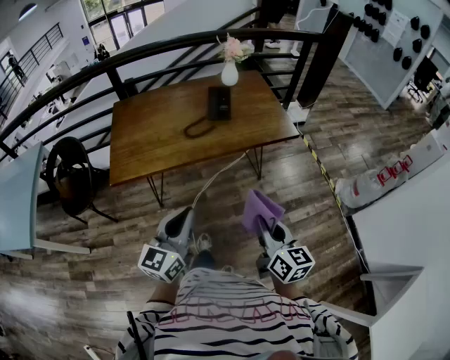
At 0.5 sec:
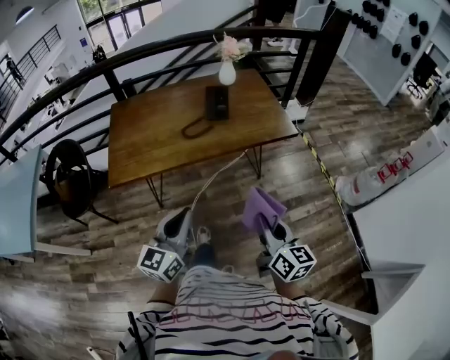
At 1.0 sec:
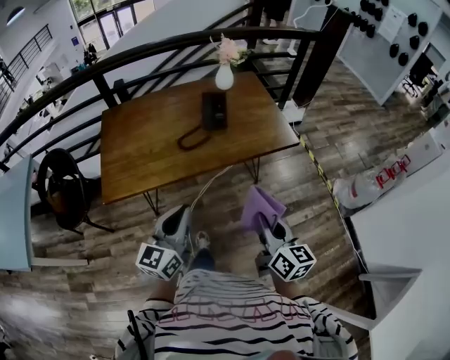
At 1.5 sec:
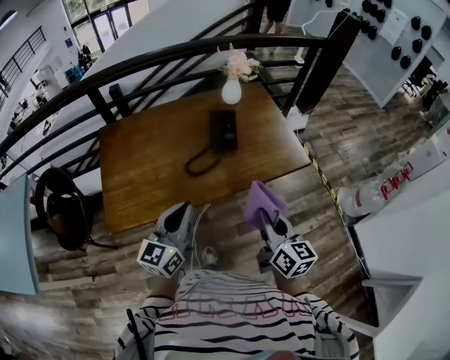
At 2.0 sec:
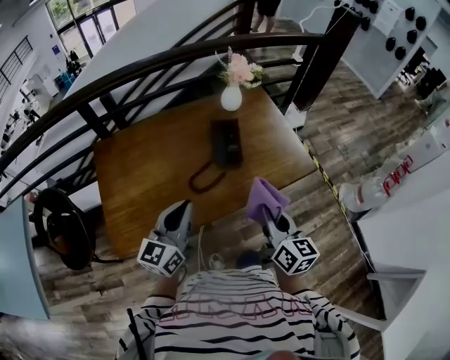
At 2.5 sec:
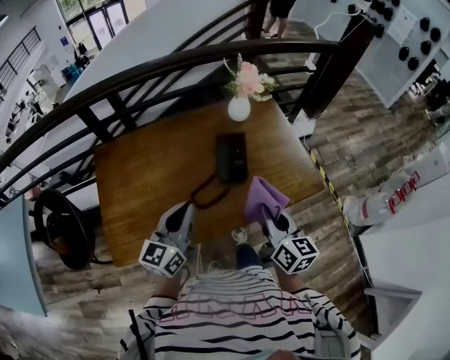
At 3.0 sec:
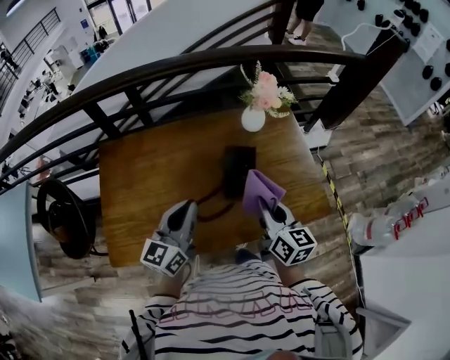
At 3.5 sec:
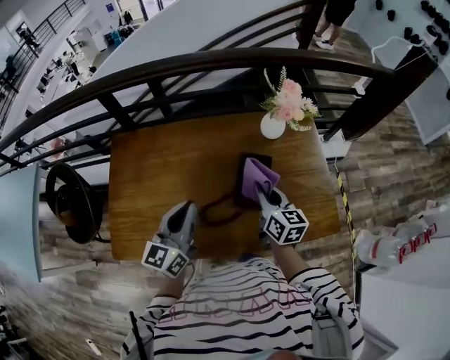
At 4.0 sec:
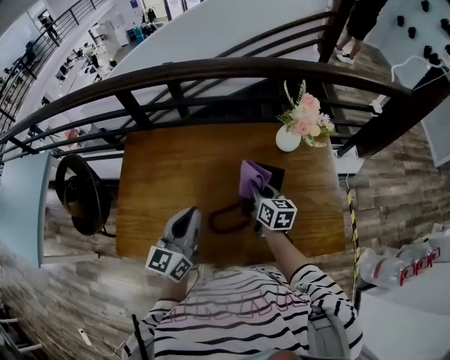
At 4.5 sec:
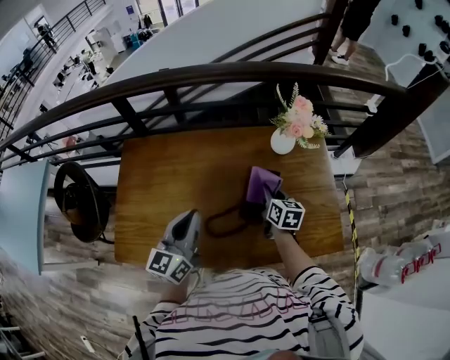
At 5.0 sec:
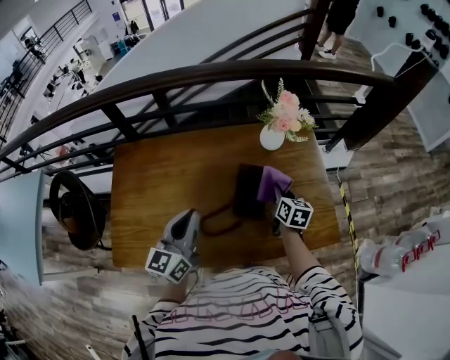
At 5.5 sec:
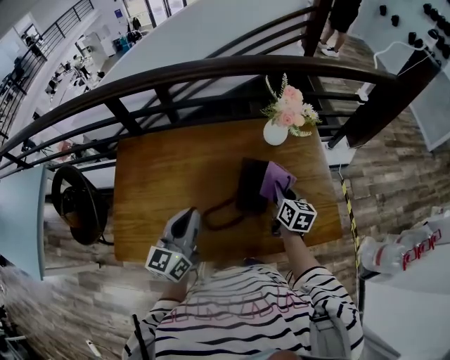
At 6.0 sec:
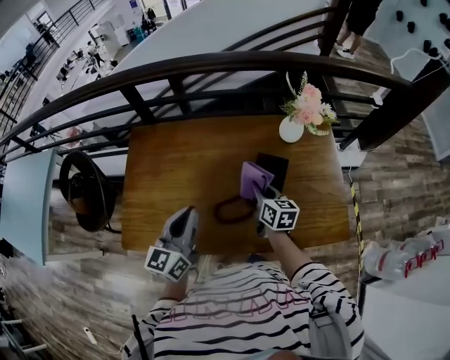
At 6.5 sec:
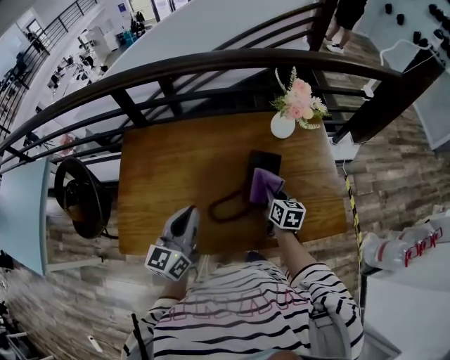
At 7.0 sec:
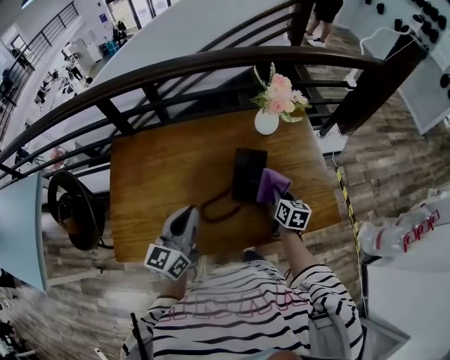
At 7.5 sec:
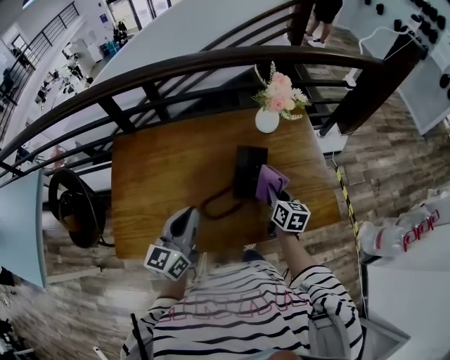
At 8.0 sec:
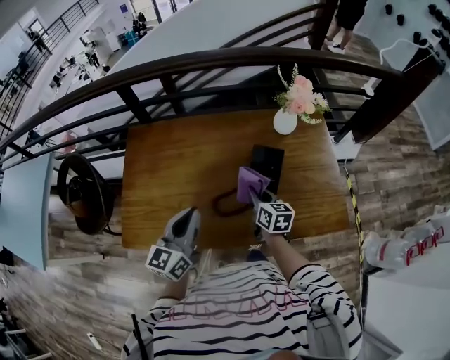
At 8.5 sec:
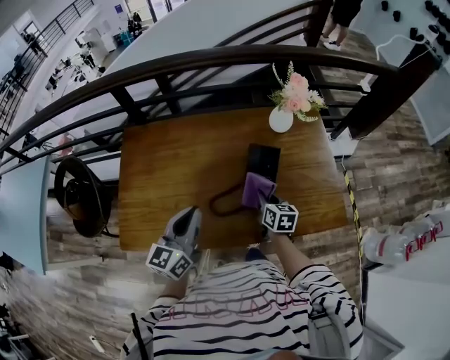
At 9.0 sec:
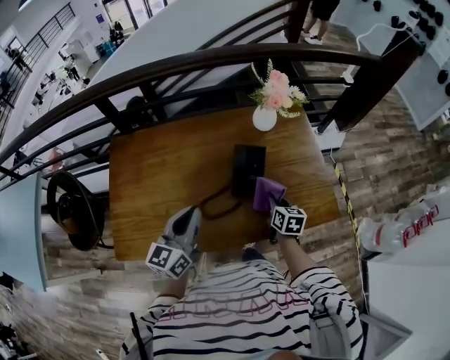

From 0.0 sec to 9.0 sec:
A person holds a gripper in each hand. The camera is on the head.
From 0.0 sec to 2.0 sec: Both grippers travel together forward, approximately 35 cm.
From 2.0 sec to 4.5 sec: The left gripper changes place by about 20 cm, and turns by roughly 20 degrees; the right gripper shifts by approximately 40 cm, and changes its angle by approximately 30 degrees.
From 4.5 sec to 7.0 sec: The right gripper goes left and right, some 15 cm each way, reversing 2 times.
From 7.0 sec to 9.0 sec: The right gripper reaches roughly 15 cm to the left, then returns.

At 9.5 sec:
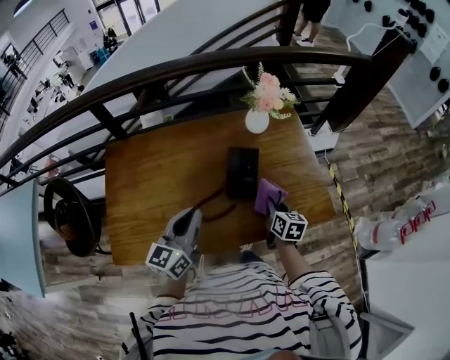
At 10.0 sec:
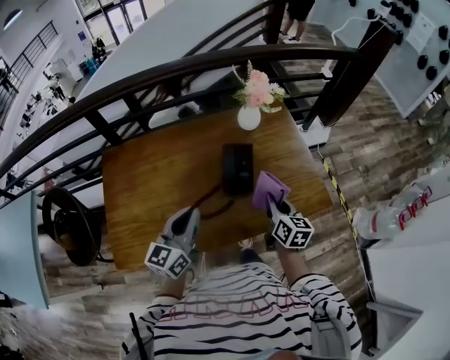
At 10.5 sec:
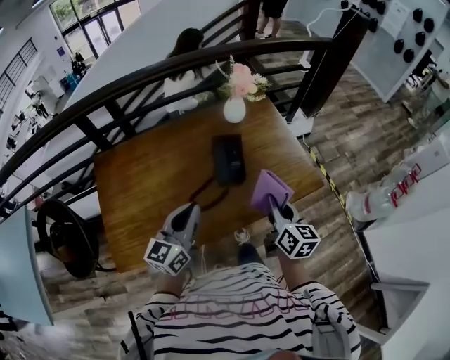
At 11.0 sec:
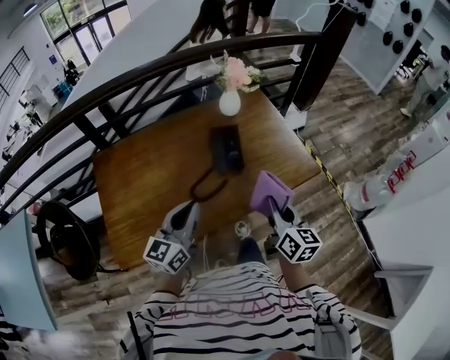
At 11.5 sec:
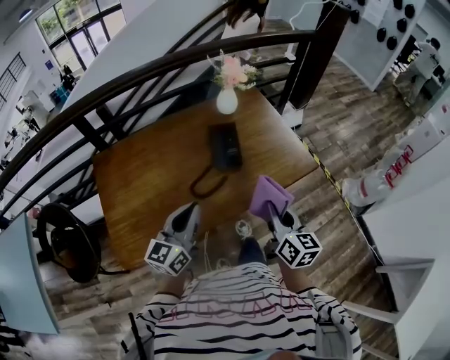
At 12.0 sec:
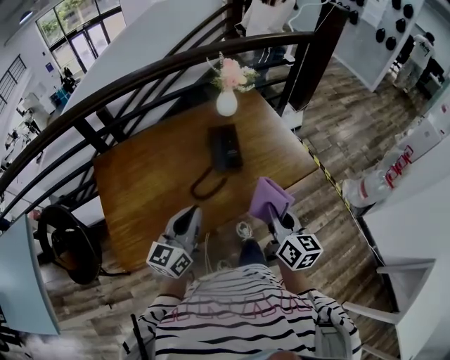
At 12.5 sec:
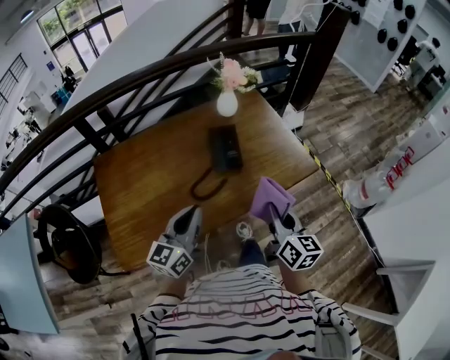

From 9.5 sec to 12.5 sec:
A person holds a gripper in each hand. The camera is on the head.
From 9.5 sec to 11.0 sec: The left gripper shifts some 10 cm backward, while the right gripper is displaced backward and upward by approximately 25 cm, and swivels roughly 20 degrees.
From 11.0 sec to 12.5 sec: The grippers move only a little.

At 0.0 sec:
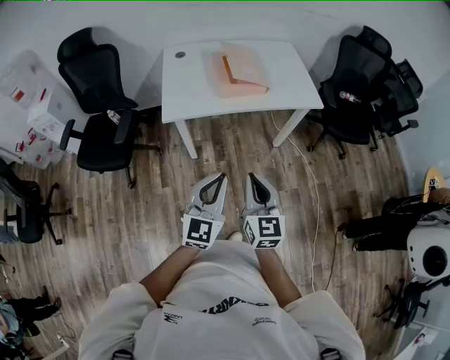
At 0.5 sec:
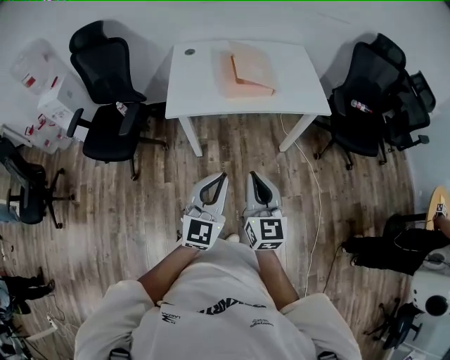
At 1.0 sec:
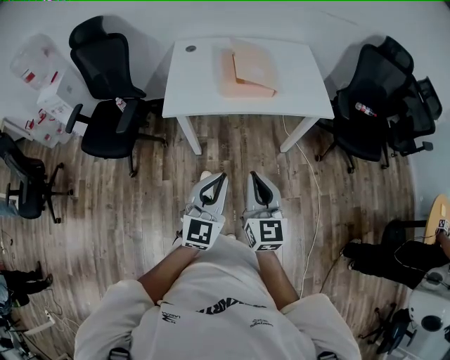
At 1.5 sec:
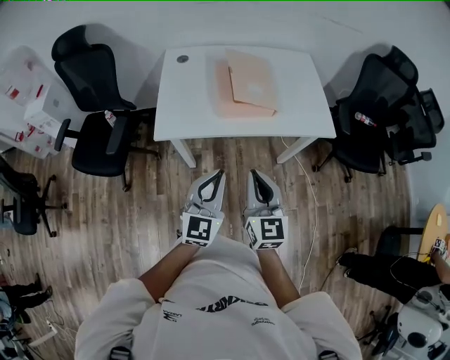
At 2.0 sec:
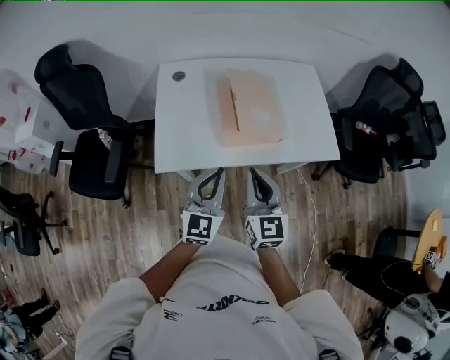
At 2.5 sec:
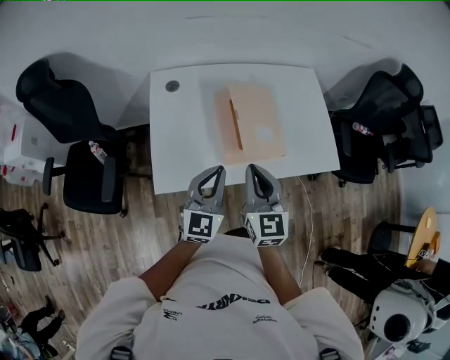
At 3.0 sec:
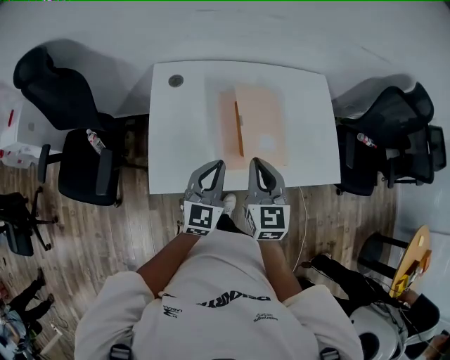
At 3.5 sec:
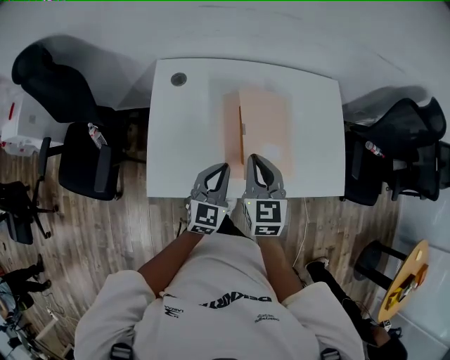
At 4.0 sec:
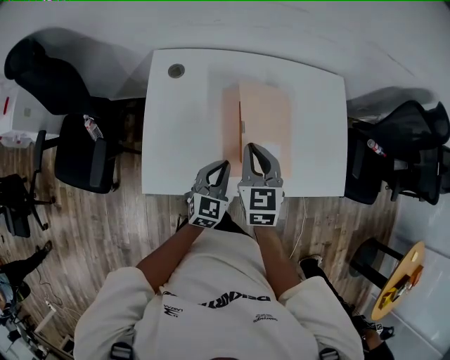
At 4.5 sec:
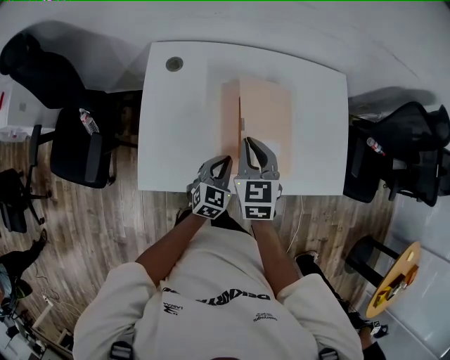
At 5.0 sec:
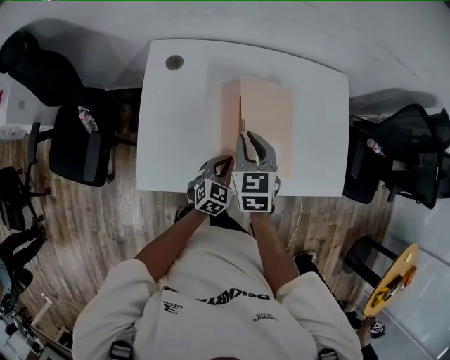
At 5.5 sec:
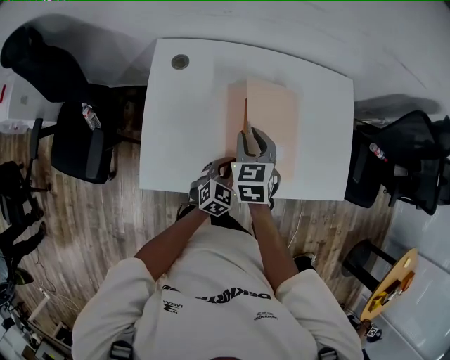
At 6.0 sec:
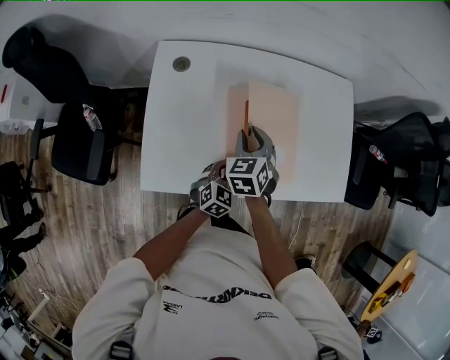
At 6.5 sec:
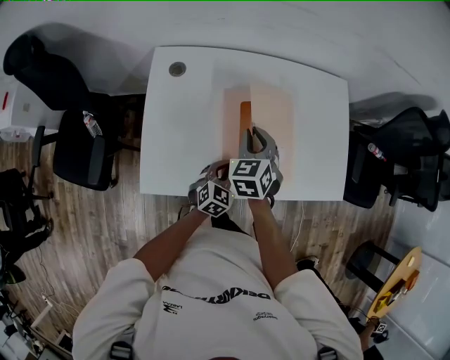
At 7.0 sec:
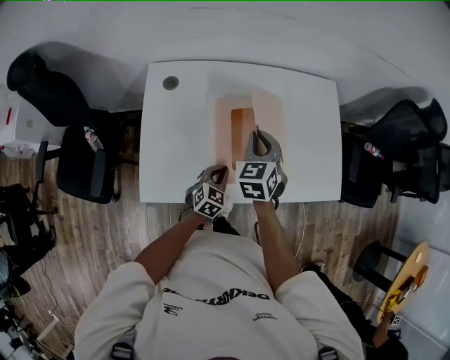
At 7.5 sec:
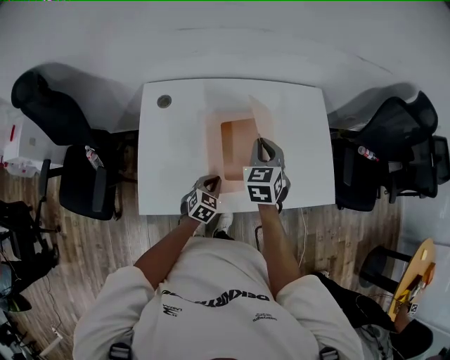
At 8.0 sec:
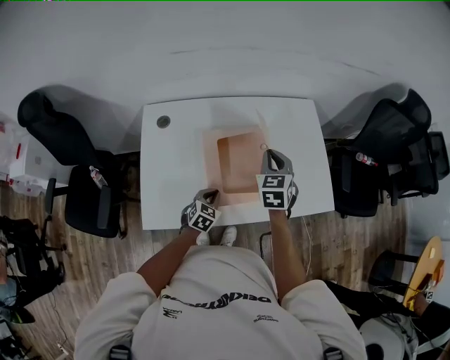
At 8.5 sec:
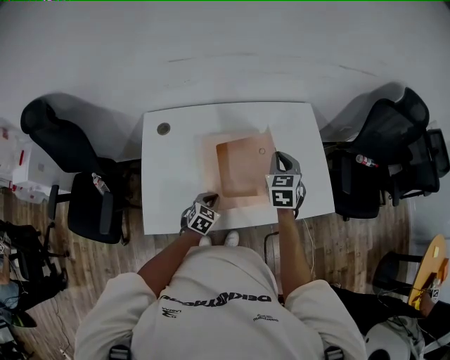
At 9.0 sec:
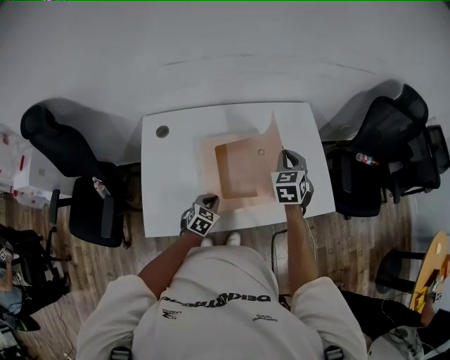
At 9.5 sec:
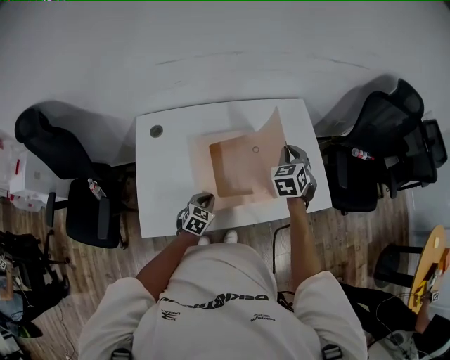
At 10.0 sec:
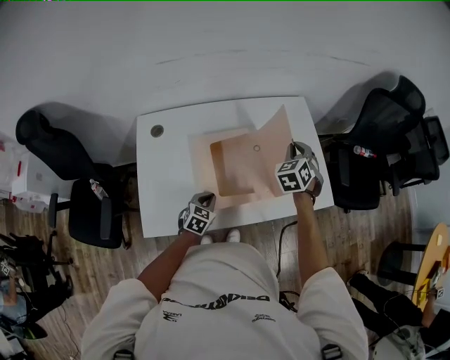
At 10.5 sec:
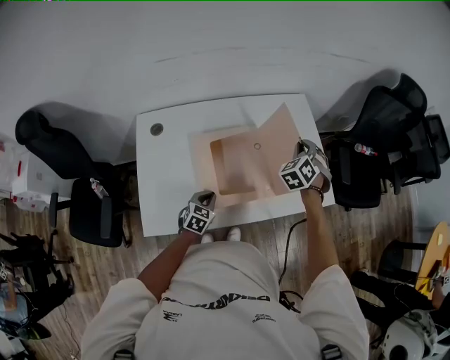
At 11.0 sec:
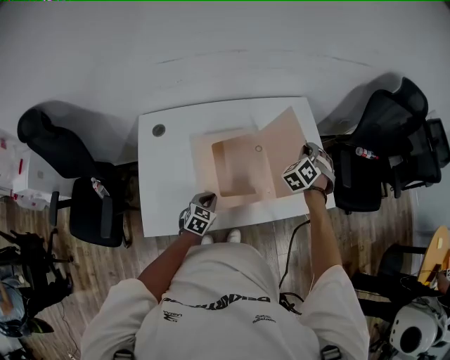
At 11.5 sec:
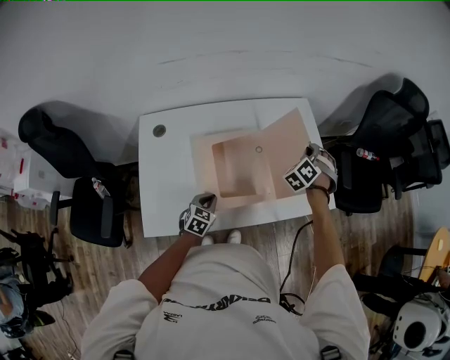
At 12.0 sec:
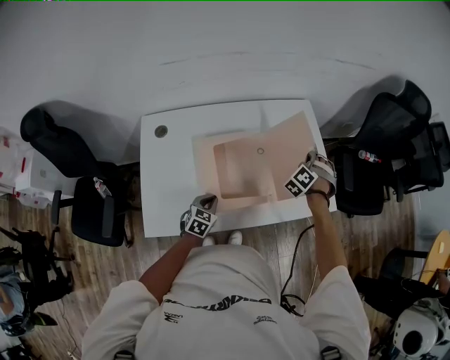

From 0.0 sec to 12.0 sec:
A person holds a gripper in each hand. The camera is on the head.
From 0.0 sec to 2.0 sec: Both grippers travel together forward, roughly 30 cm.
From 2.0 sec to 4.0 sec: The right gripper heads forward, covering about 25 cm, and changes its angle by about 20 degrees. Meanwhile the left gripper goes some 25 cm forward and downward.
From 4.0 sec to 6.0 sec: The right gripper travels downward and forward by about 10 cm, changes its angle by roughly 20 degrees, and opens, while the left gripper goes about 10 cm downward.
From 6.0 sec to 8.0 sec: The right gripper heads to the right and upward, covering some 20 cm, and closes its fingers.
From 8.0 sec to 10.0 sec: The right gripper travels to the right and forward by about 10 cm, and turns by approximately 20 degrees.
From 10.0 sec to 12.0 sec: The right gripper goes about 10 cm downward and to the right, and swivels about 40 degrees.

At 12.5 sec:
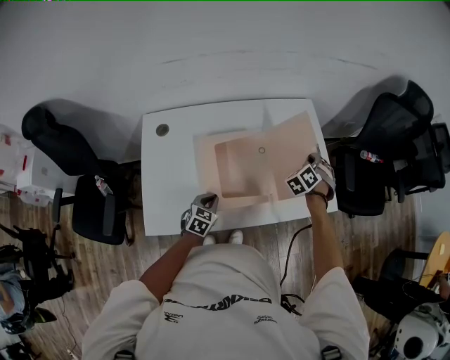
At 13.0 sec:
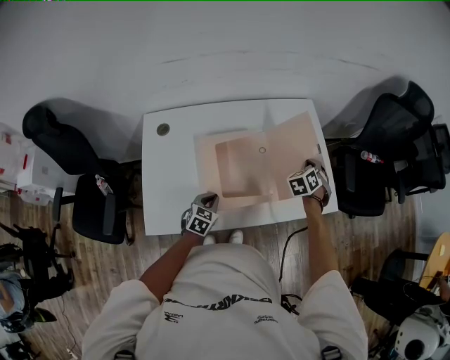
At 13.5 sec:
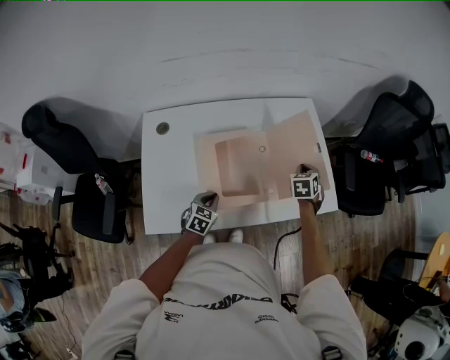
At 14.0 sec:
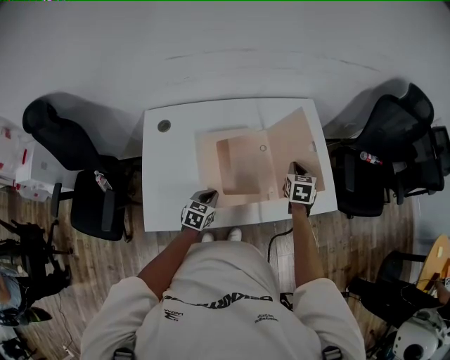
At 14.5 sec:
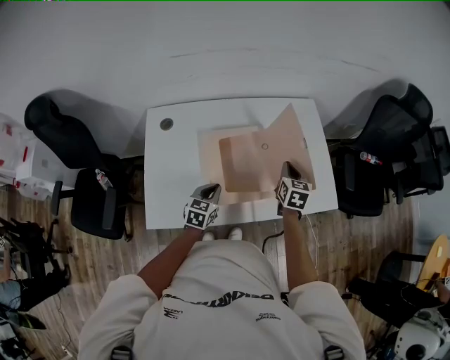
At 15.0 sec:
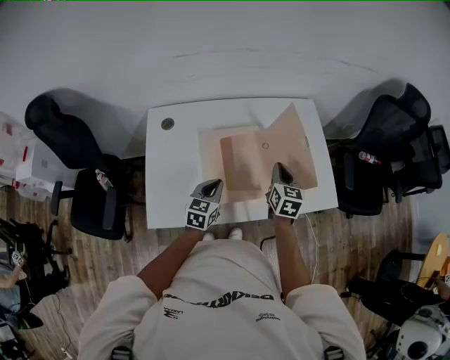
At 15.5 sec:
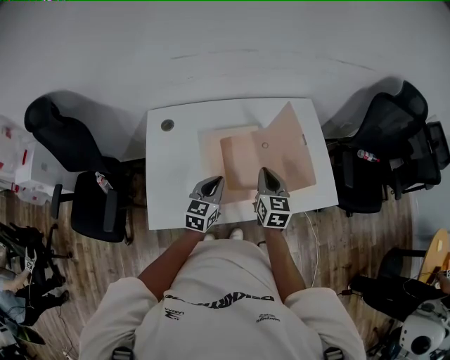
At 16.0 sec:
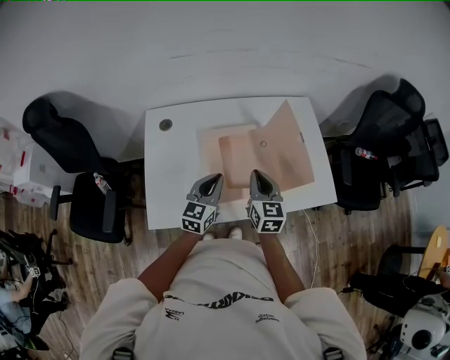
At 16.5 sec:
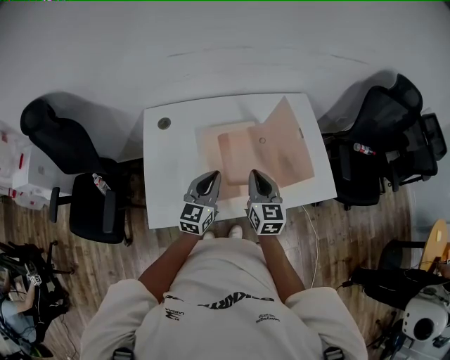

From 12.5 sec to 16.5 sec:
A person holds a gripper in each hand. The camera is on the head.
From 12.5 sec to 14.5 sec: The left gripper goes approximately 5 cm upward. Meanwhile the right gripper moves backward and to the left, some 10 cm, and rotates around the line of its fingers by approximately 60 degrees, clockwise from behind.
From 14.5 sec to 16.5 sec: The left gripper travels upward by about 15 cm, and turns by approximately 30 degrees; the right gripper shifts approximately 20 cm to the left, backward and upward, and rotates roughly 20 degrees.
